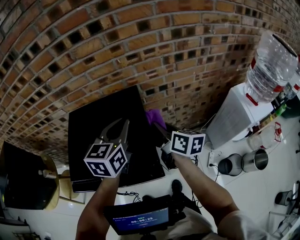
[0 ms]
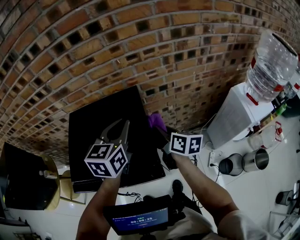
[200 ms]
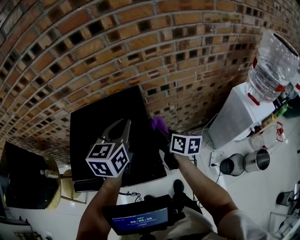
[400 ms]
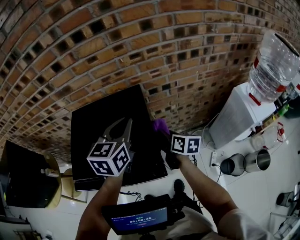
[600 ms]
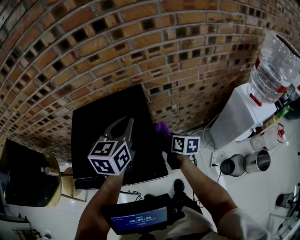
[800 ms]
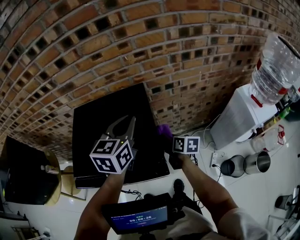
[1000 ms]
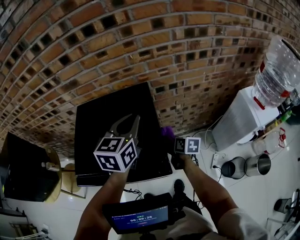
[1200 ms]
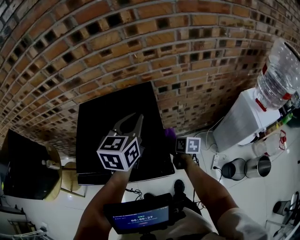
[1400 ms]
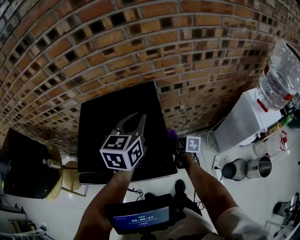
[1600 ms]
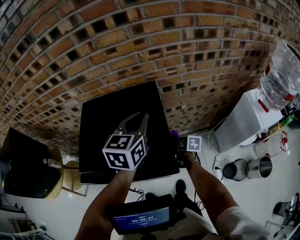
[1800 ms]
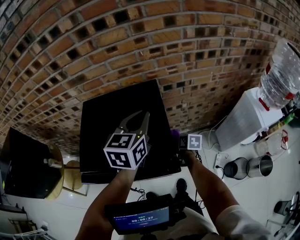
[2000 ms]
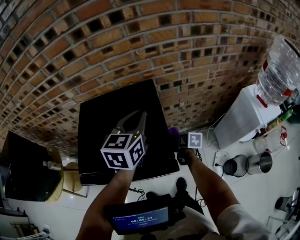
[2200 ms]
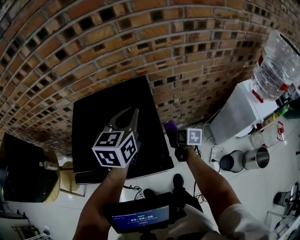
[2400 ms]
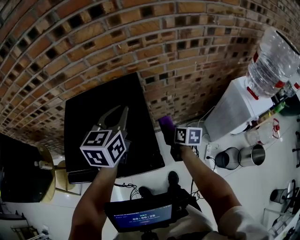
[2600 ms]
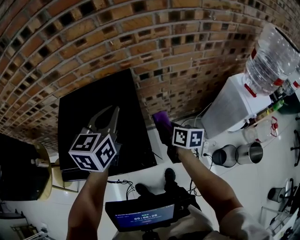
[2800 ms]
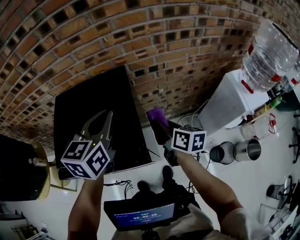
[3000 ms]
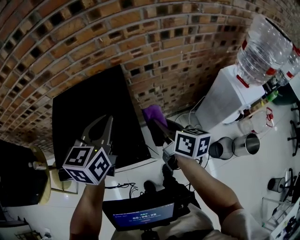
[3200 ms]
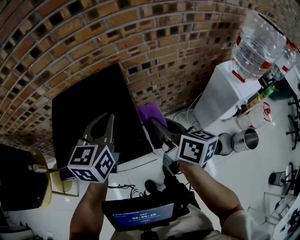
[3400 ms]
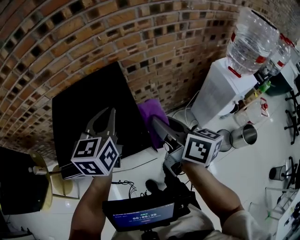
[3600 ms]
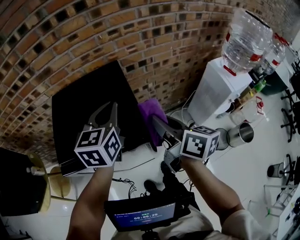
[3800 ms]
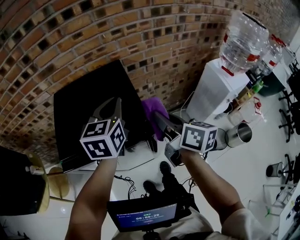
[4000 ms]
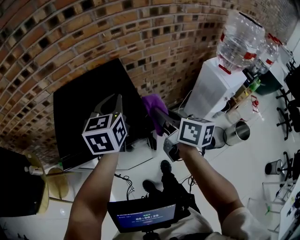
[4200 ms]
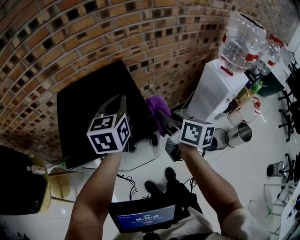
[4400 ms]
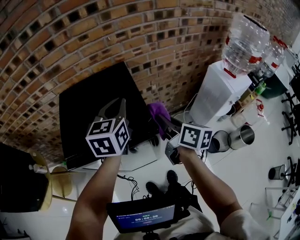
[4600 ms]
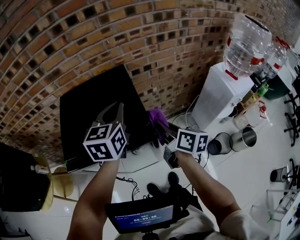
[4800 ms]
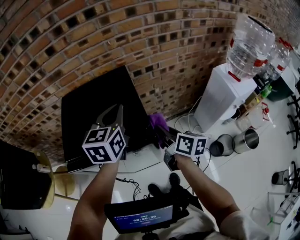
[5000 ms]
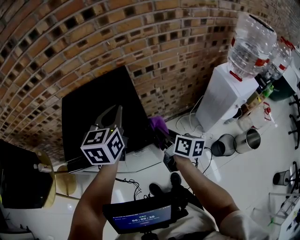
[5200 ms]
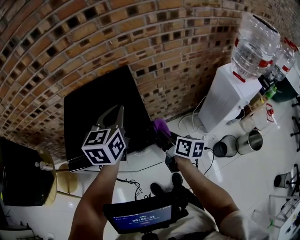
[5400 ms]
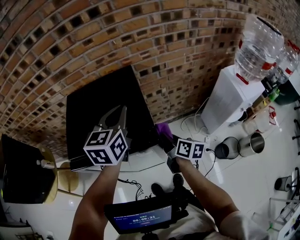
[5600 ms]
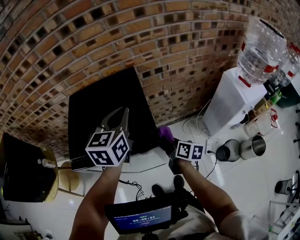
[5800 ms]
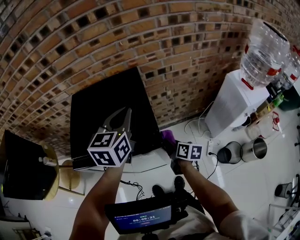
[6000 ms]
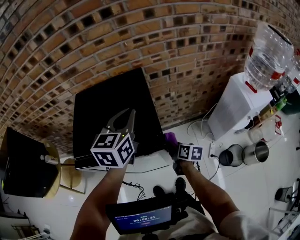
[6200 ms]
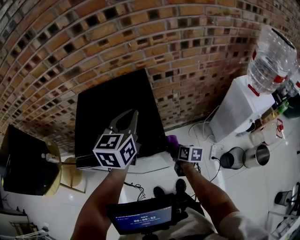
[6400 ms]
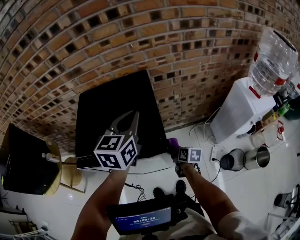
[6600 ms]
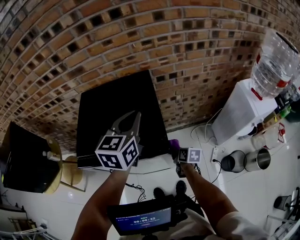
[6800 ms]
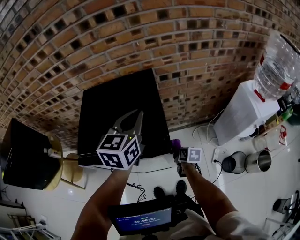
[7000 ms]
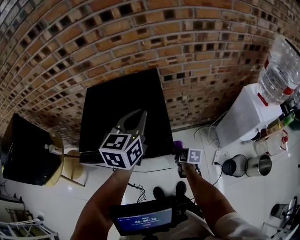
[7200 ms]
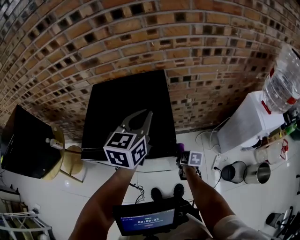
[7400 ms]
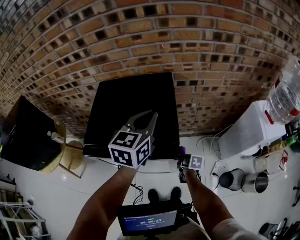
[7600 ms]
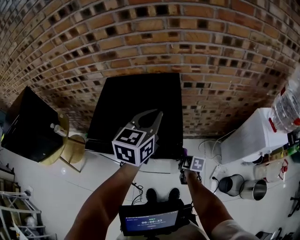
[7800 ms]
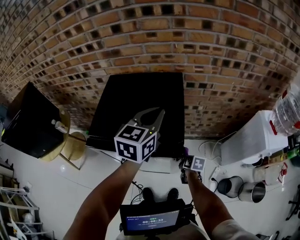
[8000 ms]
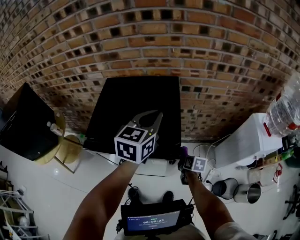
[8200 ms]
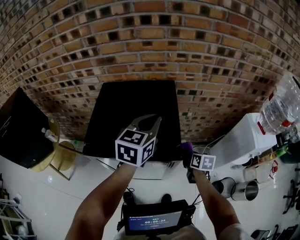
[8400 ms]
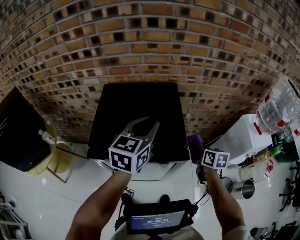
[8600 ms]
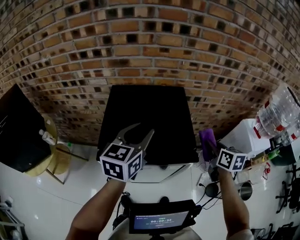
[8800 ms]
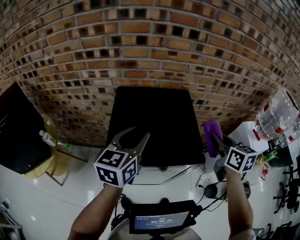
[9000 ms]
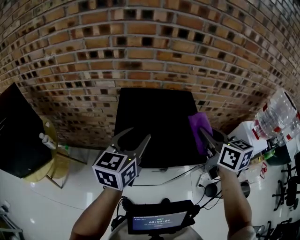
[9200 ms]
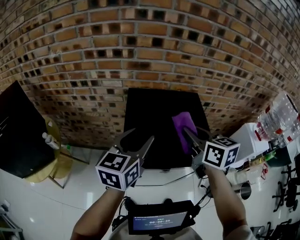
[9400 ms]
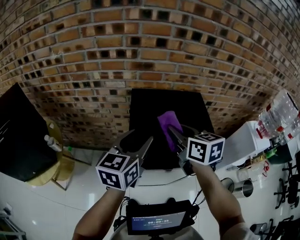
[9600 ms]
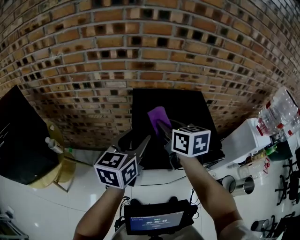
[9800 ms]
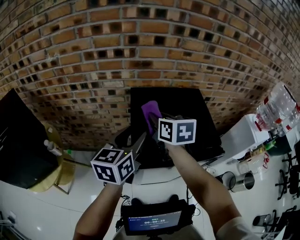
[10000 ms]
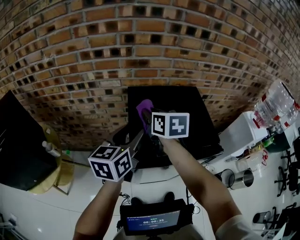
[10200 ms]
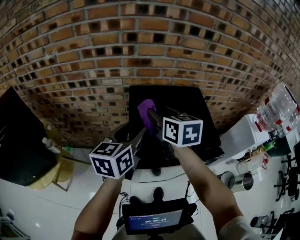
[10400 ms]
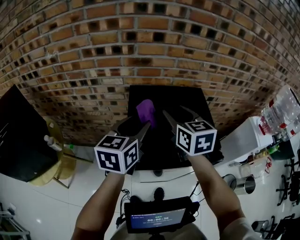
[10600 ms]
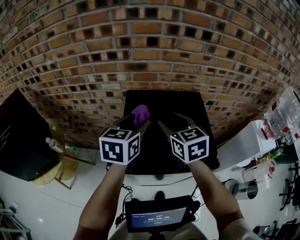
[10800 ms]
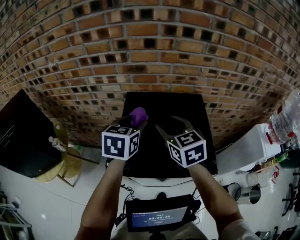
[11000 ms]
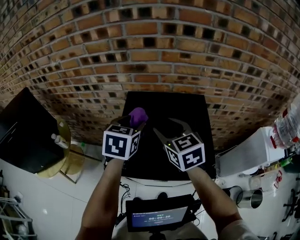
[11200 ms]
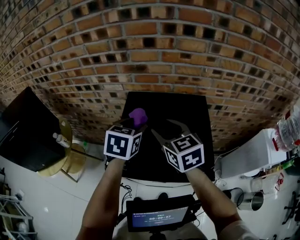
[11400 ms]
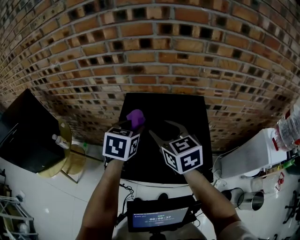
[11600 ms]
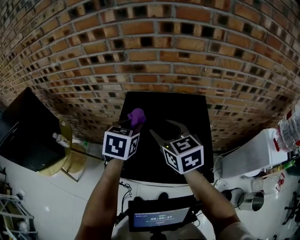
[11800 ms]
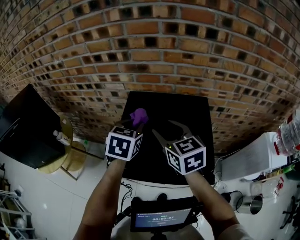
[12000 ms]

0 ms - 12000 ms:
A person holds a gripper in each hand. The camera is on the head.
0 ms - 1600 ms: The right gripper is displaced downward by some 20 cm, and changes its angle by approximately 30 degrees.
1600 ms - 3000 ms: The right gripper is displaced upward by approximately 15 cm, and changes its angle by some 20 degrees.
3000 ms - 4400 ms: The right gripper heads upward and backward, covering some 15 cm.
4400 ms - 6000 ms: The right gripper travels downward by about 20 cm, and rotates about 20 degrees.
6000 ms - 7600 ms: The right gripper goes roughly 10 cm downward, and rotates roughly 20 degrees.
7600 ms - 9000 ms: The right gripper is displaced upward by approximately 40 cm, and turns by about 40 degrees. Meanwhile the left gripper heads to the left, covering roughly 15 cm, and opens.
9000 ms - 10400 ms: The left gripper goes approximately 10 cm to the left. Meanwhile the right gripper is displaced to the left by about 30 cm, and opens its fingers.
10400 ms - 12000 ms: The right gripper shifts some 5 cm to the right, and swivels about 20 degrees, while the left gripper is displaced forward by roughly 5 cm, swivels approximately 40 degrees, and closes its fingers.

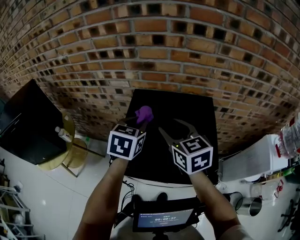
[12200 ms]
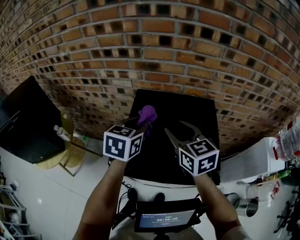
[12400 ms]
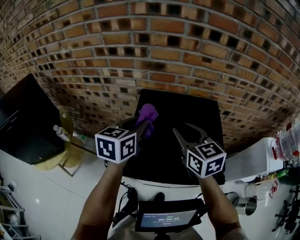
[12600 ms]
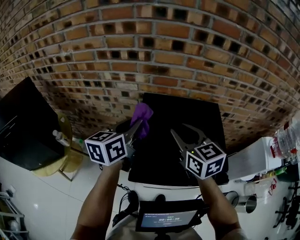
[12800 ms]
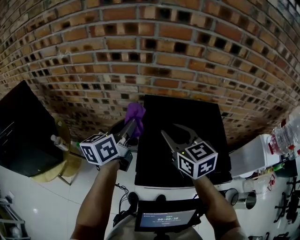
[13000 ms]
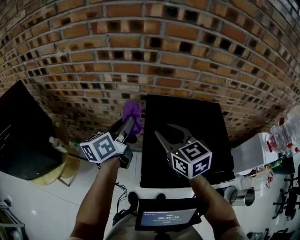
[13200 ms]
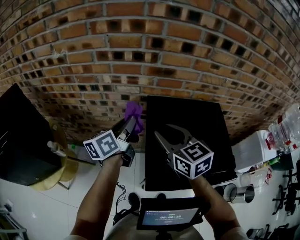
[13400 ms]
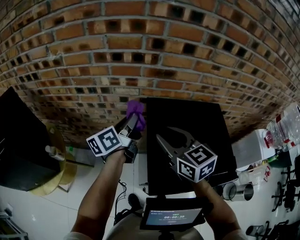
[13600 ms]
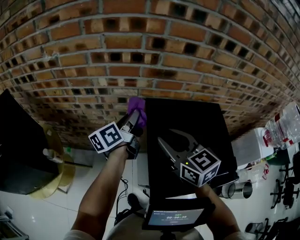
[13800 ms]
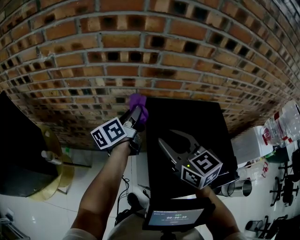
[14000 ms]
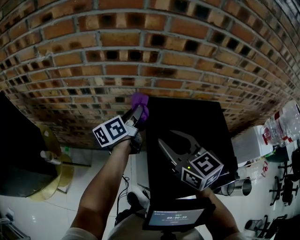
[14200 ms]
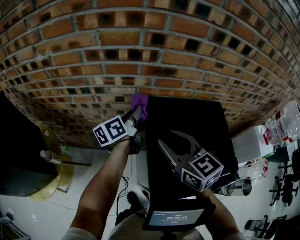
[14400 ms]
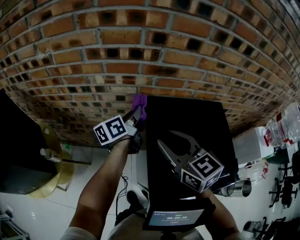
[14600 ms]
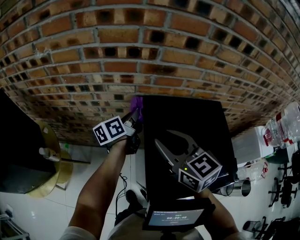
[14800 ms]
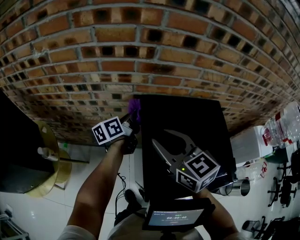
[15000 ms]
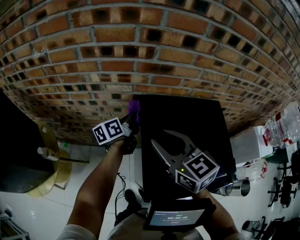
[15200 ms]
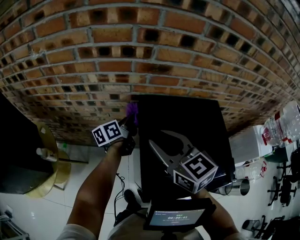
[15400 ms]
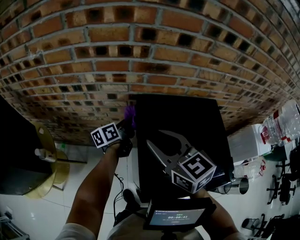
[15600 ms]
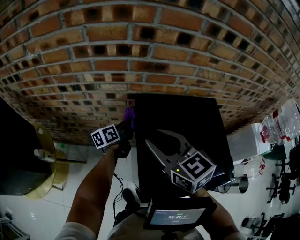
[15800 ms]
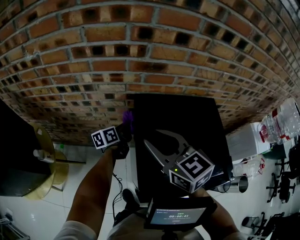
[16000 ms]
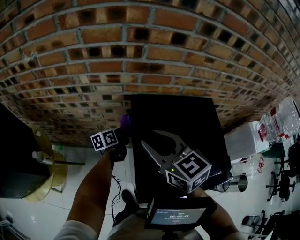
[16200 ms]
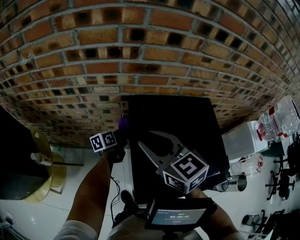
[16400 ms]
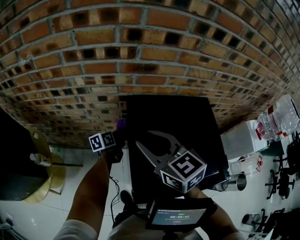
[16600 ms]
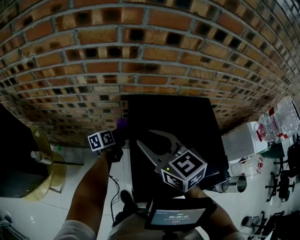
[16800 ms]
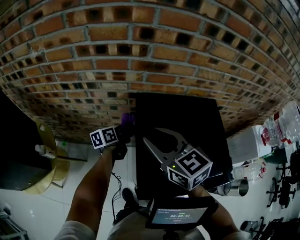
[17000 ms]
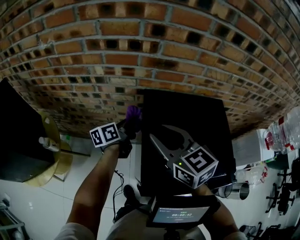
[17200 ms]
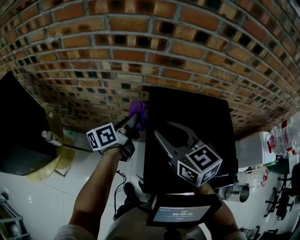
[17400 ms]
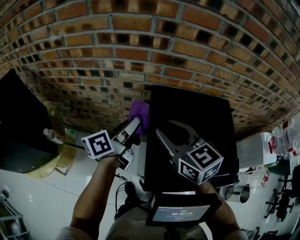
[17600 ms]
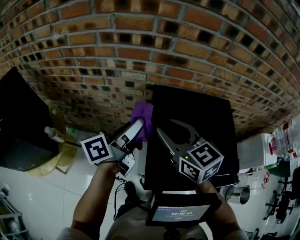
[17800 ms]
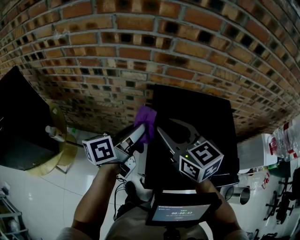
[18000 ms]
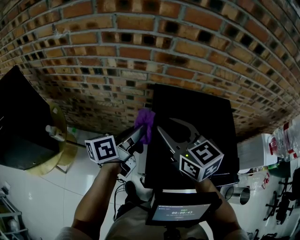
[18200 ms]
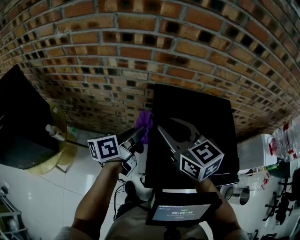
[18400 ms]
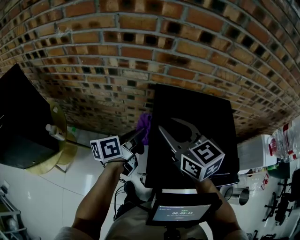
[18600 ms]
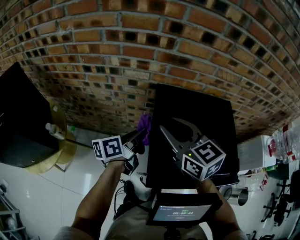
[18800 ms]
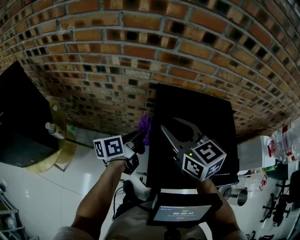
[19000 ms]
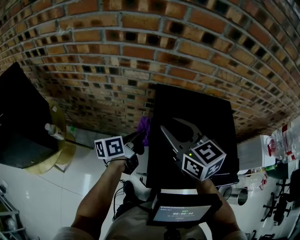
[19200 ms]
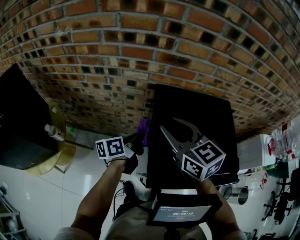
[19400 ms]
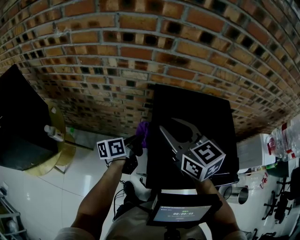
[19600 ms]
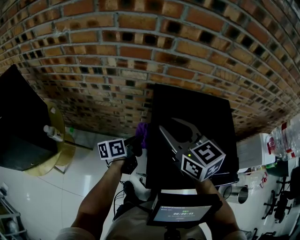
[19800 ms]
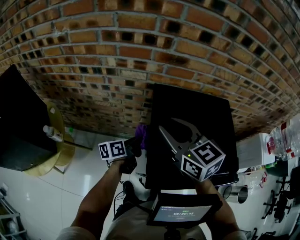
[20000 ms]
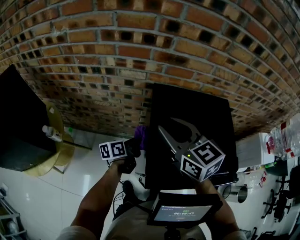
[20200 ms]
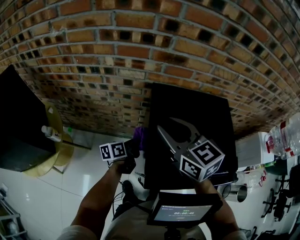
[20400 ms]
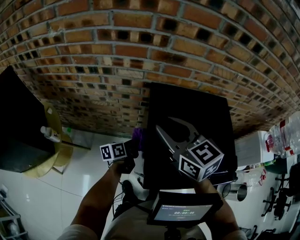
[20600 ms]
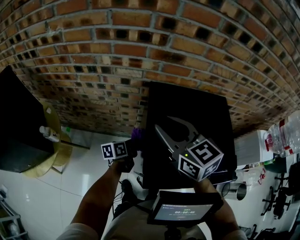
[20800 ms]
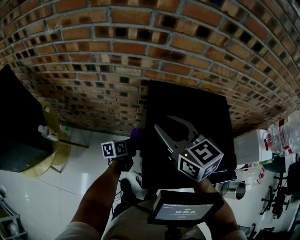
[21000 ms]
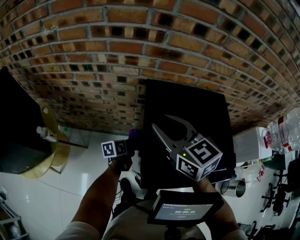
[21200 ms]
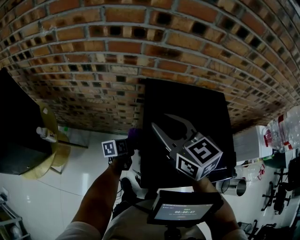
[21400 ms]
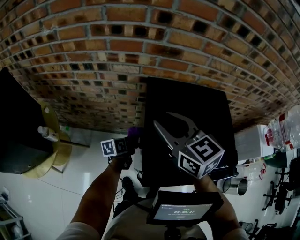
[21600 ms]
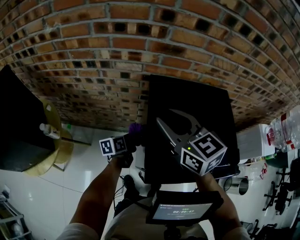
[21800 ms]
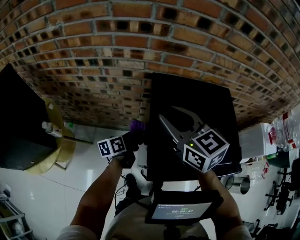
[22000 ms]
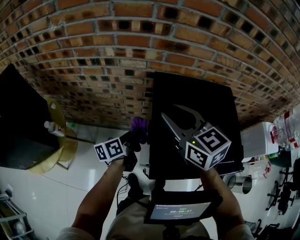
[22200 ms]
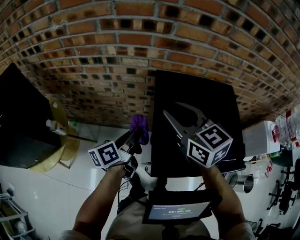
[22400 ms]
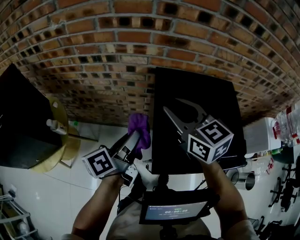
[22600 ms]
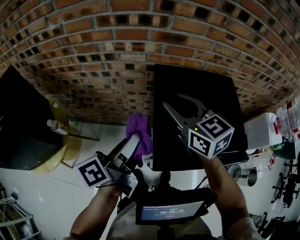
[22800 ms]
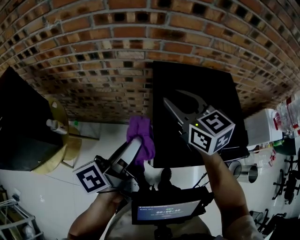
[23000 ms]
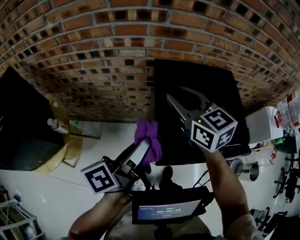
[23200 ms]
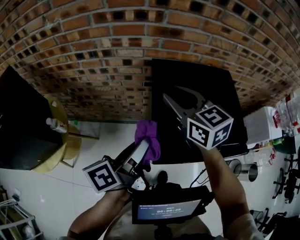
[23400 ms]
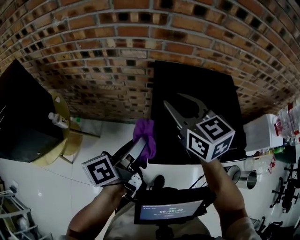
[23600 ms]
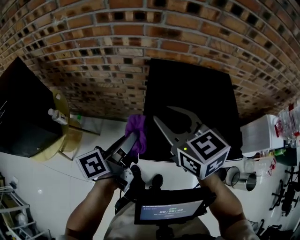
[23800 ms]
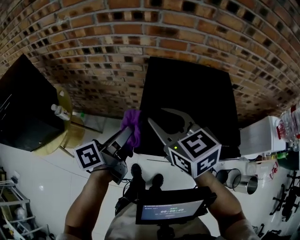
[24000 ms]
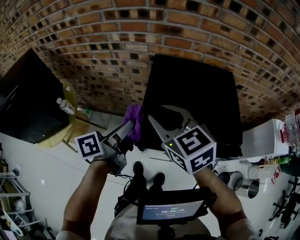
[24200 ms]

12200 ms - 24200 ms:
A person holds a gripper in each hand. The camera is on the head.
12200 ms - 13800 ms: The right gripper heads to the left, covering about 10 cm. The left gripper shifts about 15 cm forward and to the left, and tips its fingers upward by approximately 30 degrees.
13800 ms - 15200 ms: The left gripper heads downward, covering approximately 10 cm.
15200 ms - 16600 ms: The left gripper moves downward, some 15 cm.
16600 ms - 18200 ms: The left gripper moves upward and backward, about 25 cm, and rotates about 20 degrees.
18200 ms - 19800 ms: The left gripper travels downward by roughly 15 cm.
19800 ms - 21200 ms: The left gripper moves downward, some 15 cm, and turns by approximately 20 degrees.
21200 ms - 22600 ms: The left gripper travels upward by approximately 25 cm, and points its fingers about 30 degrees further upward.
22600 ms - 24200 ms: The left gripper moves backward, some 5 cm; the right gripper shifts approximately 10 cm backward.
